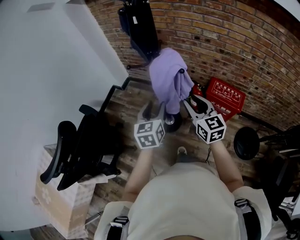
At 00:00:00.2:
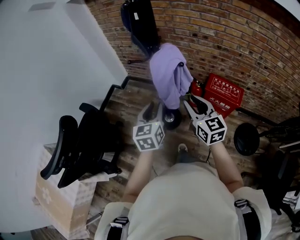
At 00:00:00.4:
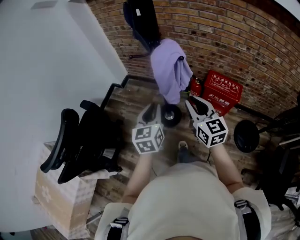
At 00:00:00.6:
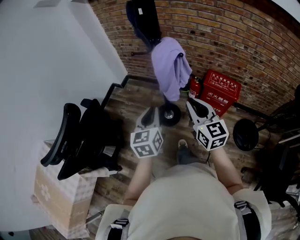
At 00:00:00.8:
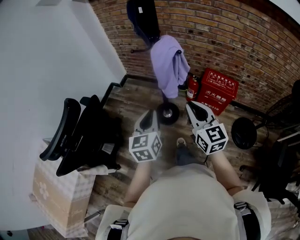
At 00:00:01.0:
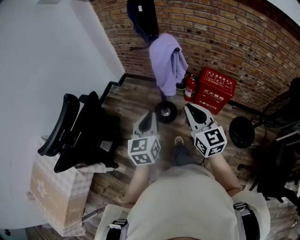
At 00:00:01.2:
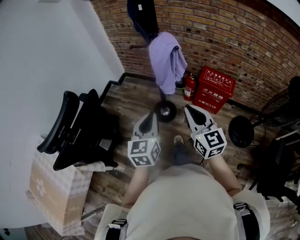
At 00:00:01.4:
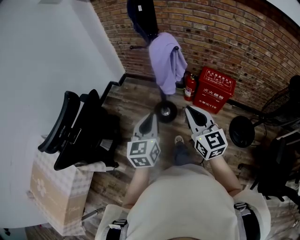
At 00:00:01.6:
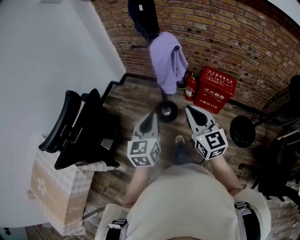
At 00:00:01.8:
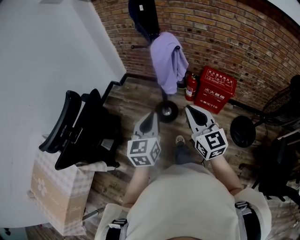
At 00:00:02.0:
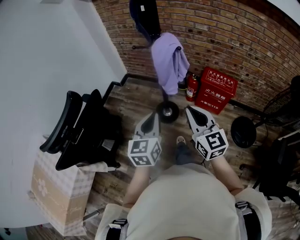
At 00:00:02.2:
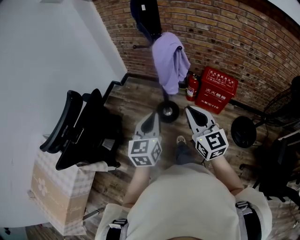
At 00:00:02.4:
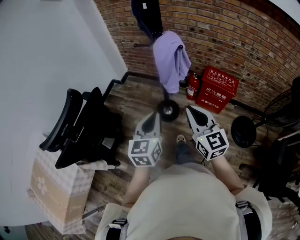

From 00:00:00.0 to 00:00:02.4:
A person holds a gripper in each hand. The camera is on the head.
From 00:00:00.0 to 00:00:01.2: Both grippers move backward, some 20 cm. The left gripper closes up; the right gripper closes its fingers.
From 00:00:01.2 to 00:00:02.4: The grippers stay close to where they were, moving slightly.

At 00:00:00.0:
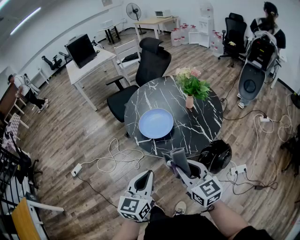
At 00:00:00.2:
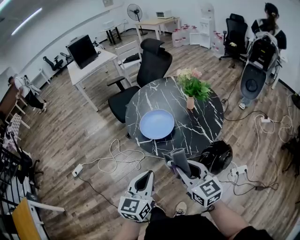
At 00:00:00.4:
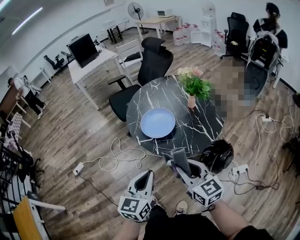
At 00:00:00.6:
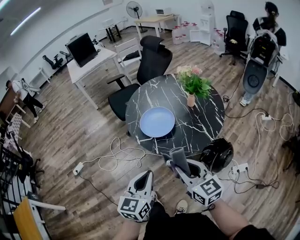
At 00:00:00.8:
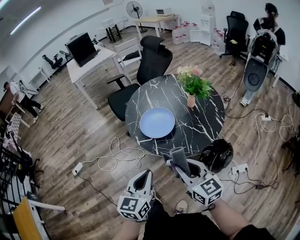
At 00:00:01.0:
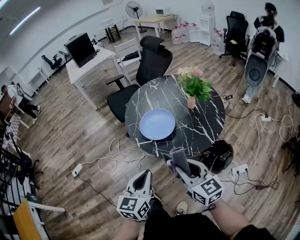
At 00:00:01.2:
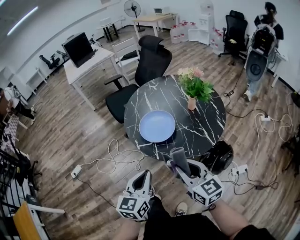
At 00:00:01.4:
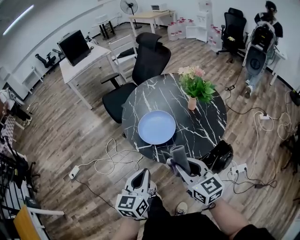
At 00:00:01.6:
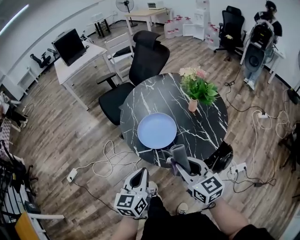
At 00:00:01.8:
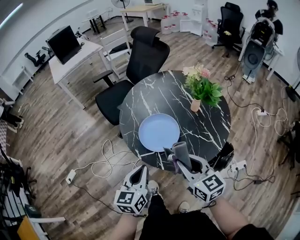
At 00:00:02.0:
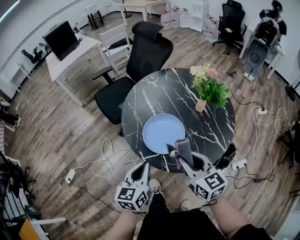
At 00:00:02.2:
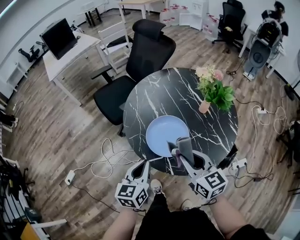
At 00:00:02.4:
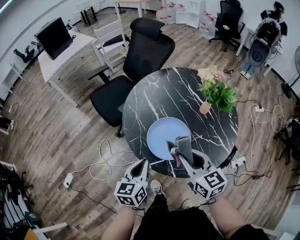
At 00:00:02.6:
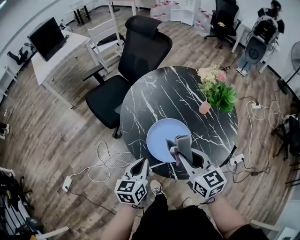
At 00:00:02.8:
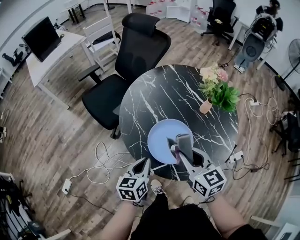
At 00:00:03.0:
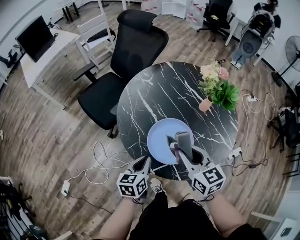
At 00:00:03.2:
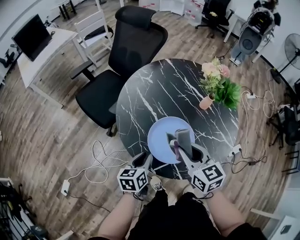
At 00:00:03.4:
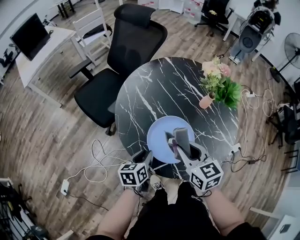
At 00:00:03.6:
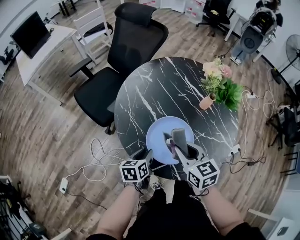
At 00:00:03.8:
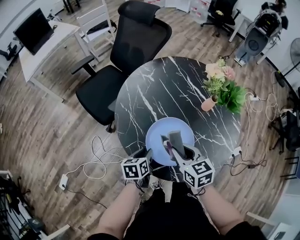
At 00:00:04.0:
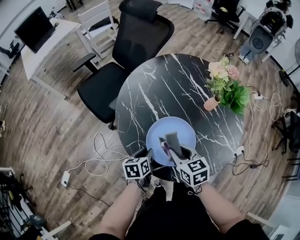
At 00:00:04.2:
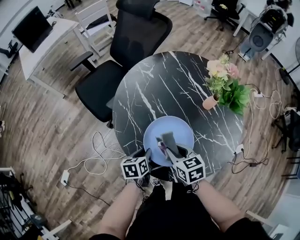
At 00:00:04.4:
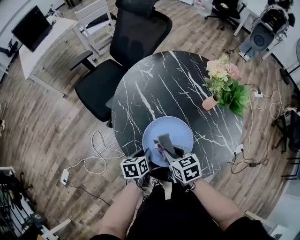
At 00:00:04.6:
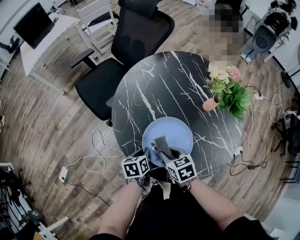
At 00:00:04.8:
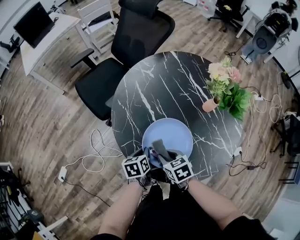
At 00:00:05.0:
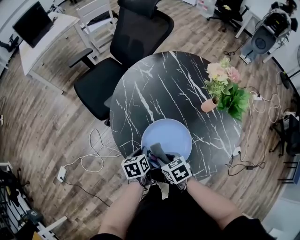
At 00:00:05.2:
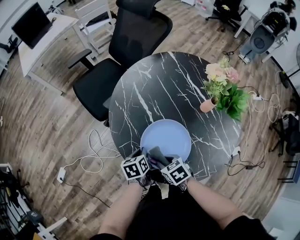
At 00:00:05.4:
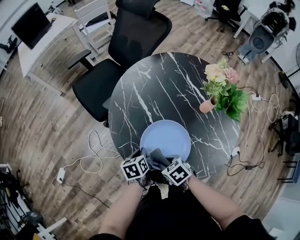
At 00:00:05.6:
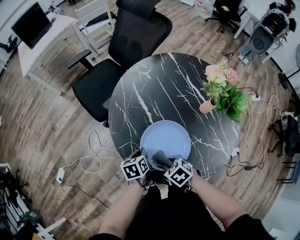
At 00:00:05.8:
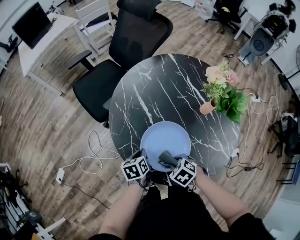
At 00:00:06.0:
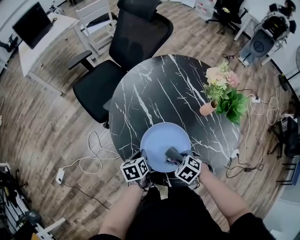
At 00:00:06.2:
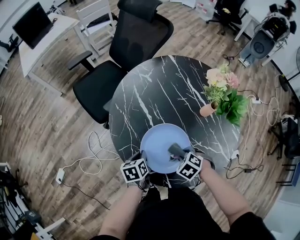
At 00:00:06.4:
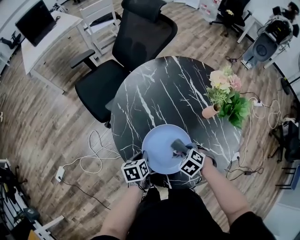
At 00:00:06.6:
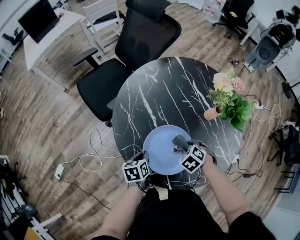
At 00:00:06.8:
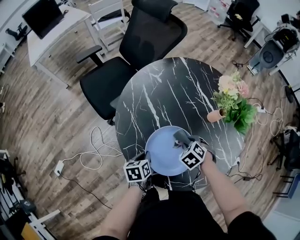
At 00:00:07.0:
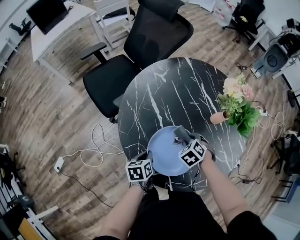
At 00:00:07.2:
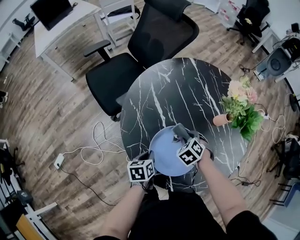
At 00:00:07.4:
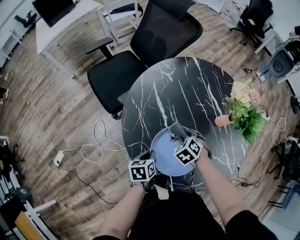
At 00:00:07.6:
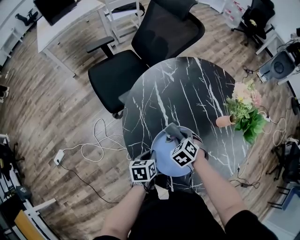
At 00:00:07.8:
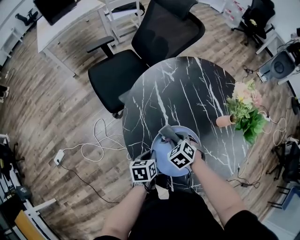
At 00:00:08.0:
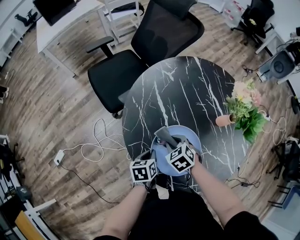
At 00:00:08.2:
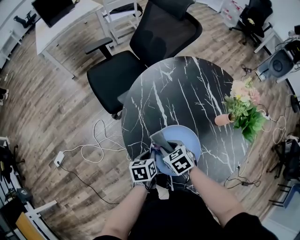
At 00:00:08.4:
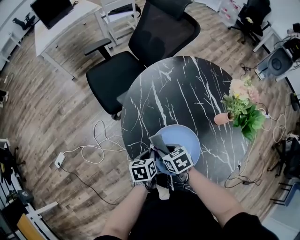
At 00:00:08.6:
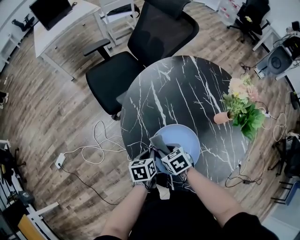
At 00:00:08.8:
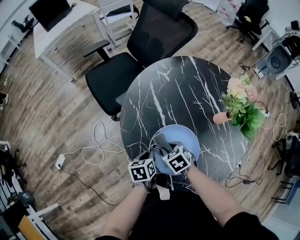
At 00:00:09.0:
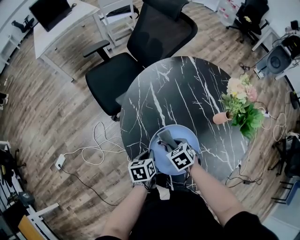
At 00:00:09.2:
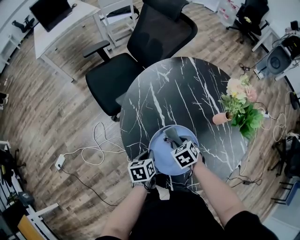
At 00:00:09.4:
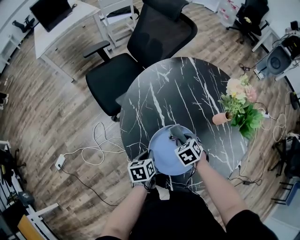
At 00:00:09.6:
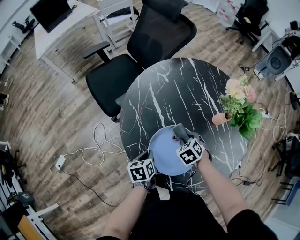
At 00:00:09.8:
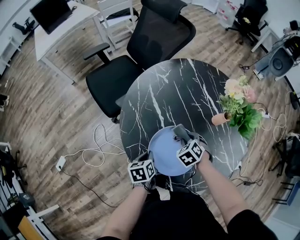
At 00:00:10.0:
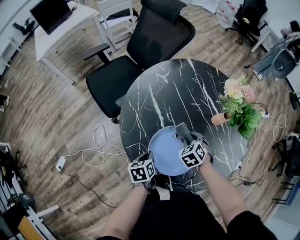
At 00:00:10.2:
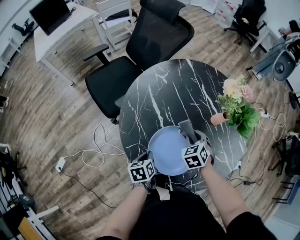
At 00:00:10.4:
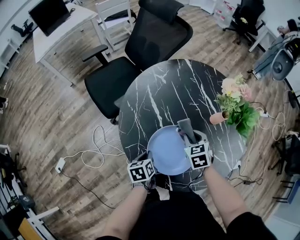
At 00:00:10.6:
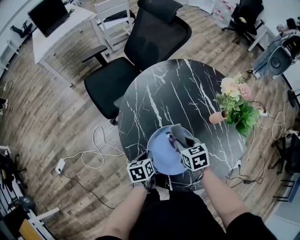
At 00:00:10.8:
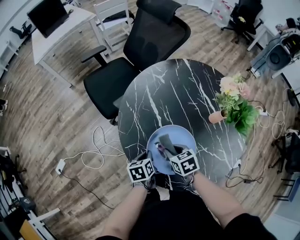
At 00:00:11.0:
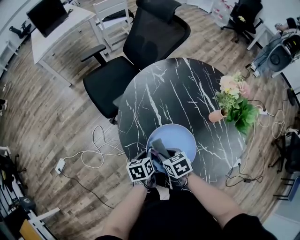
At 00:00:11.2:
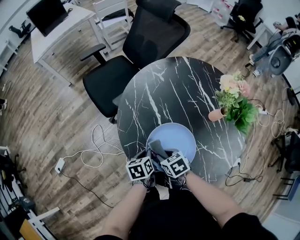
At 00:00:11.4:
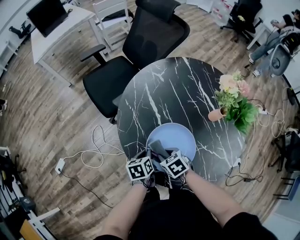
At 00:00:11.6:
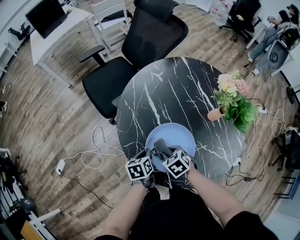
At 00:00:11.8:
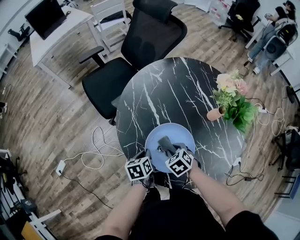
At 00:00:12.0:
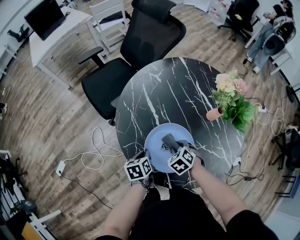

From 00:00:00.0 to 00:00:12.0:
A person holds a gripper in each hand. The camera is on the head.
From 00:00:00.0 to 00:00:01.6: Both grippers move forward, some 10 cm.
From 00:00:01.6 to 00:00:03.0: The right gripper moves forward and to the left, roughly 20 cm. The left gripper travels forward, downward and to the left by about 30 cm, and turns by about 30 degrees.
From 00:00:03.0 to 00:00:04.4: Both grippers travel together downward, about 15 cm. The right gripper swivels roughly 30 degrees. The left gripper swivels roughly 20 degrees.
From 00:00:04.4 to 00:00:06.0: The right gripper shifts by about 10 cm, and angles its fingers downward, by about 30 degrees.
From 00:00:06.0 to 00:00:07.6: The right gripper moves some 15 cm.
From 00:00:07.6 to 00:00:09.0: The right gripper changes its angle by some 20 degrees.
From 00:00:09.0 to 00:00:10.4: The right gripper moves to the right, upward and forward, some 10 cm, and swivels approximately 20 degrees.
From 00:00:10.4 to 00:00:12.0: The right gripper travels backward, downward and to the left by some 10 cm, and swivels roughly 30 degrees.

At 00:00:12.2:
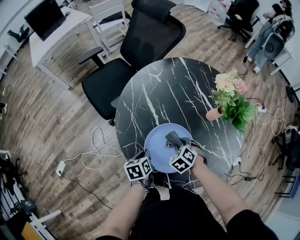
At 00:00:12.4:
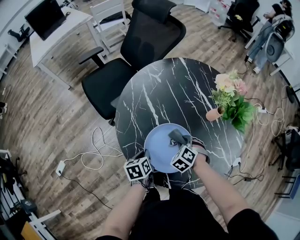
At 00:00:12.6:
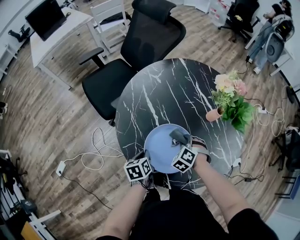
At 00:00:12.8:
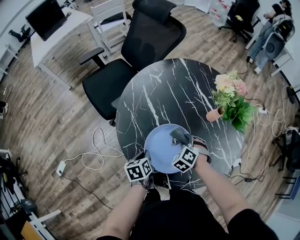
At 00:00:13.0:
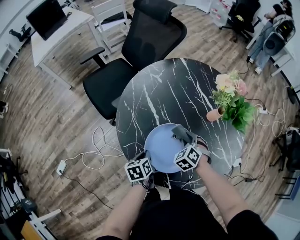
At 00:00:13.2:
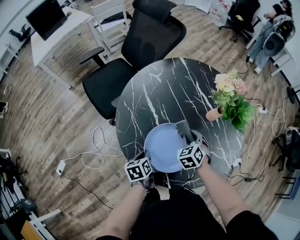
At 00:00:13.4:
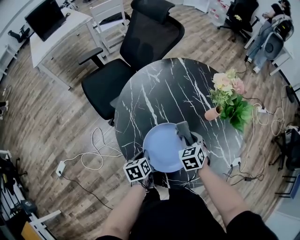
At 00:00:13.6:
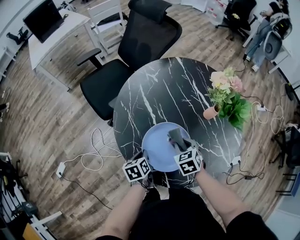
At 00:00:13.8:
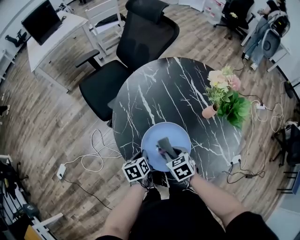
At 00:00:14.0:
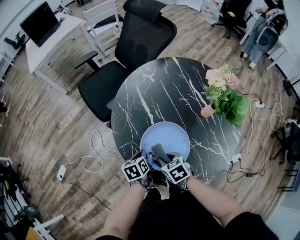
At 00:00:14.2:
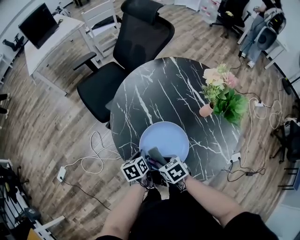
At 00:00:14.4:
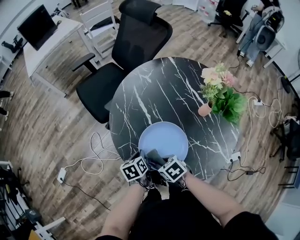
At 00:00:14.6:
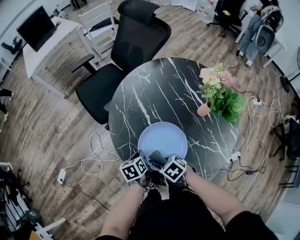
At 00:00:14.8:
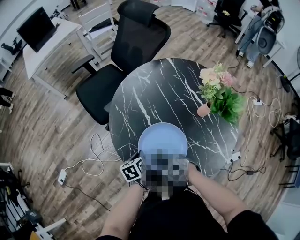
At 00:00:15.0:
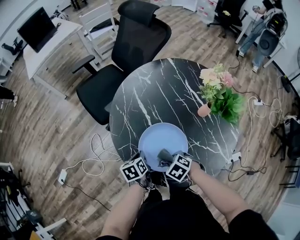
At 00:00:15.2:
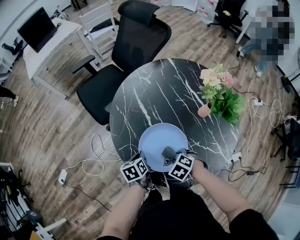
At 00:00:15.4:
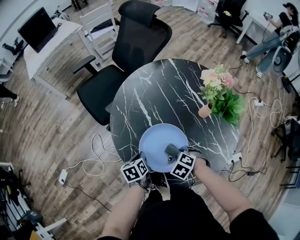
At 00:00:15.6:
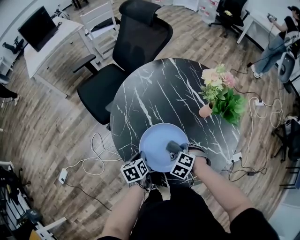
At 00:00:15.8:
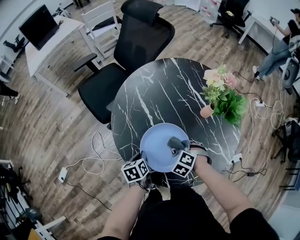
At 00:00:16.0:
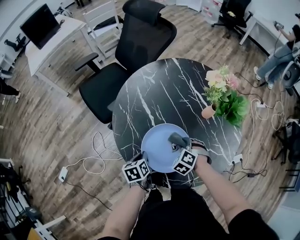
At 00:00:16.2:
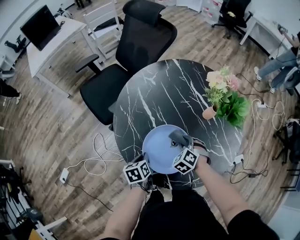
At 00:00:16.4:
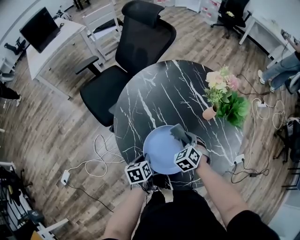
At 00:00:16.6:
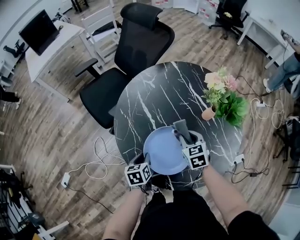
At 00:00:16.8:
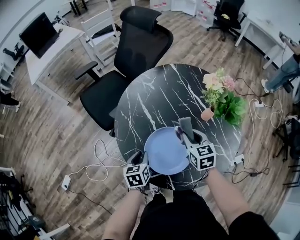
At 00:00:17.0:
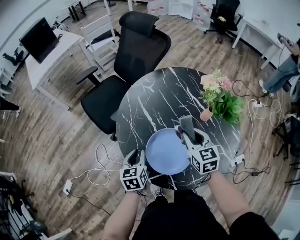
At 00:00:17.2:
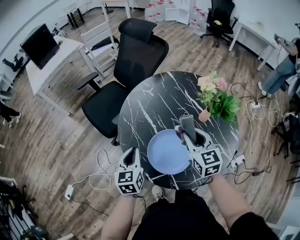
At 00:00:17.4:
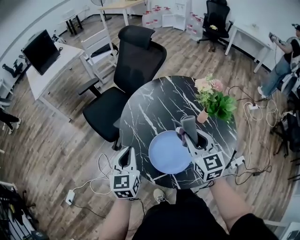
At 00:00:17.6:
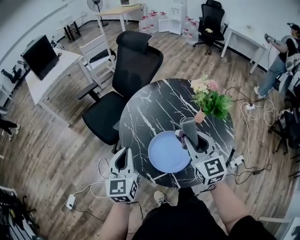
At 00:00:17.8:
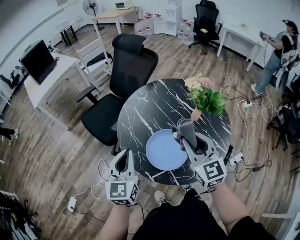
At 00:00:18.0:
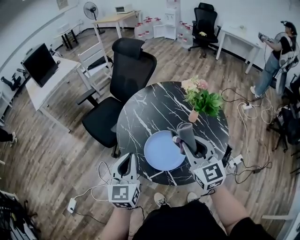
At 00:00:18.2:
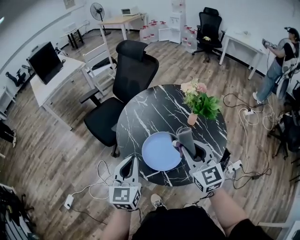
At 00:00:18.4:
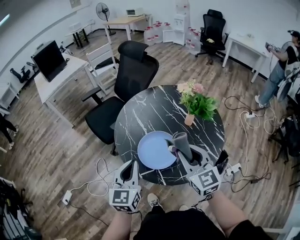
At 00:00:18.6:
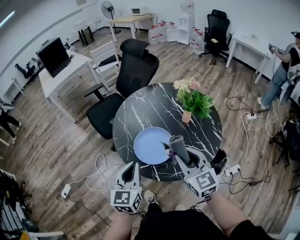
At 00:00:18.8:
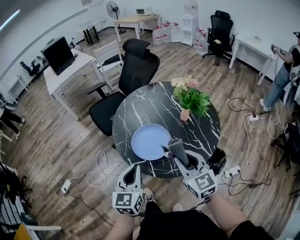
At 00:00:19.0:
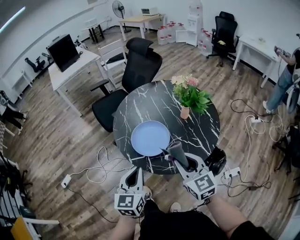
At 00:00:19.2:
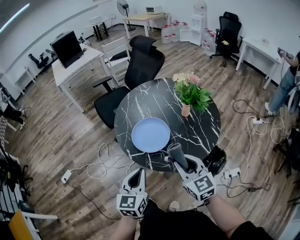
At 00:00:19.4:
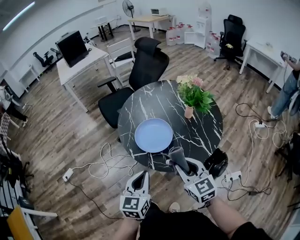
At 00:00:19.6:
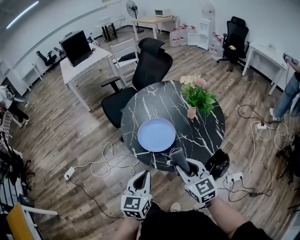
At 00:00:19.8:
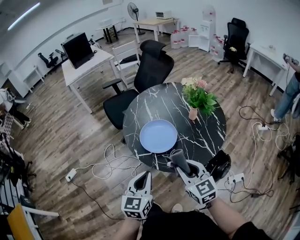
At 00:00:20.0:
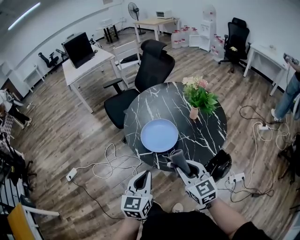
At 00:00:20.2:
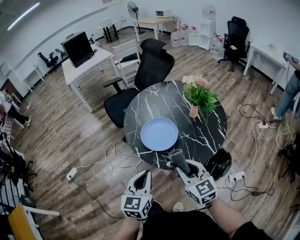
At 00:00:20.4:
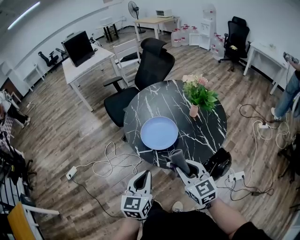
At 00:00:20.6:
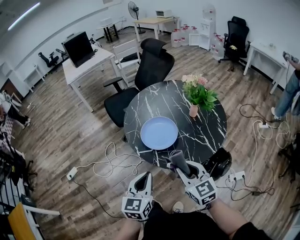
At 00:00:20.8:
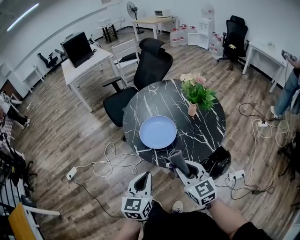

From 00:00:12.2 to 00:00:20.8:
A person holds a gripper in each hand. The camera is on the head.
From 00:00:12.2 to 00:00:13.6: The right gripper turns by roughly 30 degrees.
From 00:00:13.6 to 00:00:15.0: The right gripper ends up roughly 10 cm from where it was, and swivels some 30 degrees.
From 00:00:15.0 to 00:00:16.6: The right gripper ends up approximately 15 cm from where it was, and points its fingers about 30 degrees further upward.
From 00:00:16.6 to 00:00:18.0: The right gripper goes approximately 30 cm upward and backward, and angles its fingers upward, by roughly 30 degrees; the left gripper is displaced upward by roughly 30 cm, and points its fingers roughly 40 degrees further upward.
From 00:00:18.0 to 00:00:19.4: The right gripper travels backward by approximately 20 cm, and swivels about 20 degrees. Meanwhile the left gripper goes about 25 cm backward and to the right.
From 00:00:19.4 to 00:00:20.8: There are only small adjustments of the grippers.
